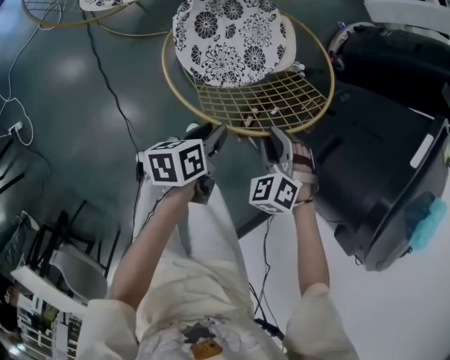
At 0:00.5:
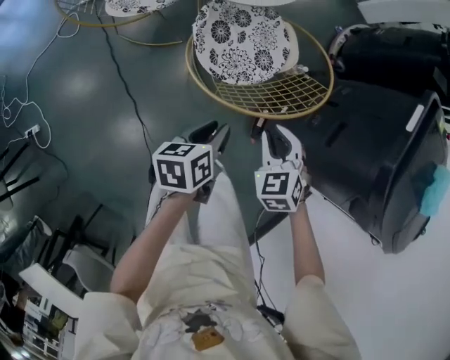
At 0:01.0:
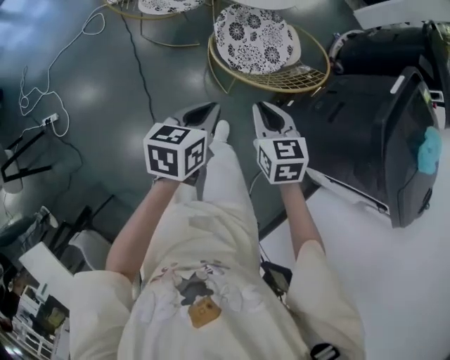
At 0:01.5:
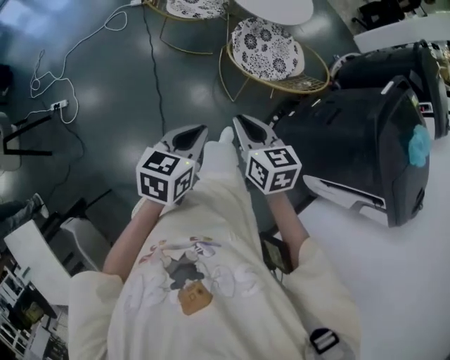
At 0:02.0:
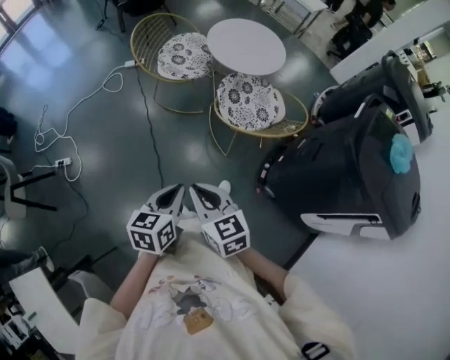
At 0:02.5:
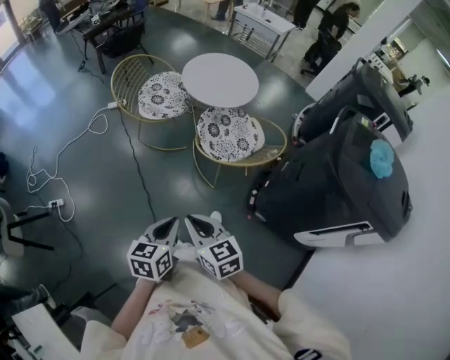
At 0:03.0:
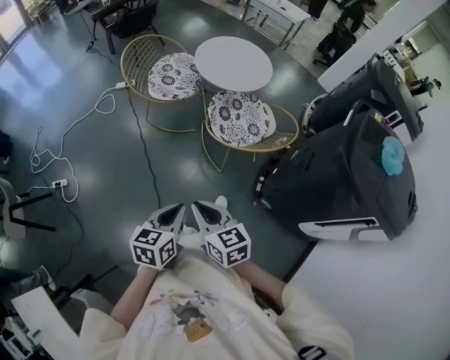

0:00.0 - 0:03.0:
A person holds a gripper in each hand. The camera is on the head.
0:00.0 - 0:01.5: The left gripper changes place by some 40 cm, swivels some 40 degrees, and closes up. The right gripper shifts by about 40 cm, and twists about 60 degrees clockwise, seen from behind.
0:01.5 - 0:03.0: The right gripper goes approximately 10 cm to the left and backward.

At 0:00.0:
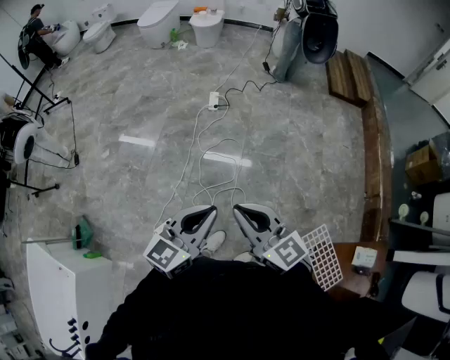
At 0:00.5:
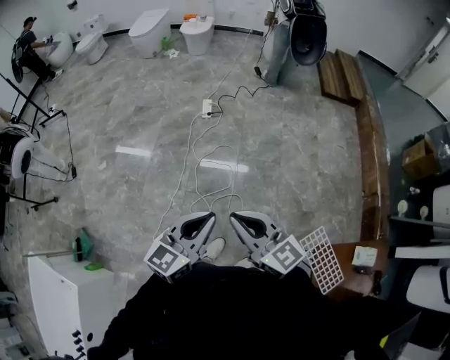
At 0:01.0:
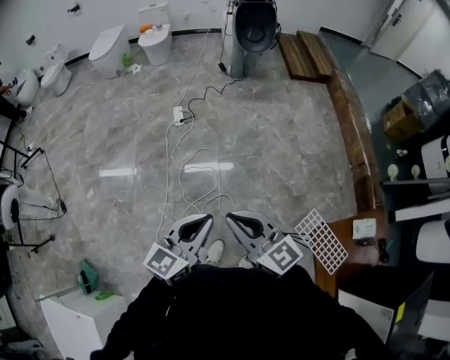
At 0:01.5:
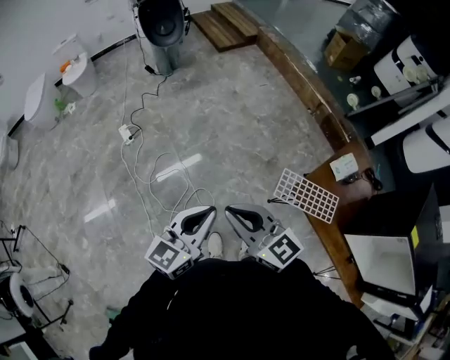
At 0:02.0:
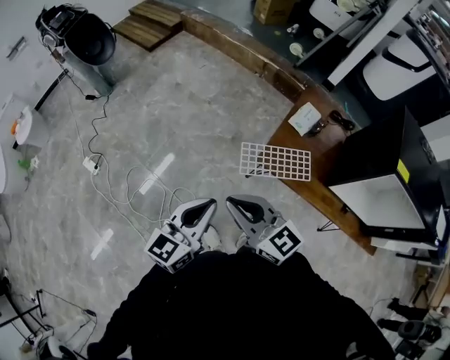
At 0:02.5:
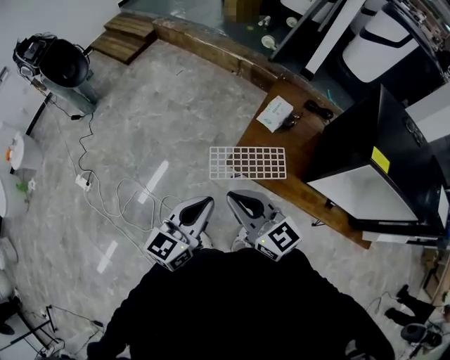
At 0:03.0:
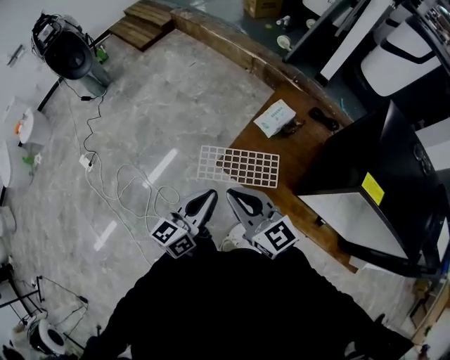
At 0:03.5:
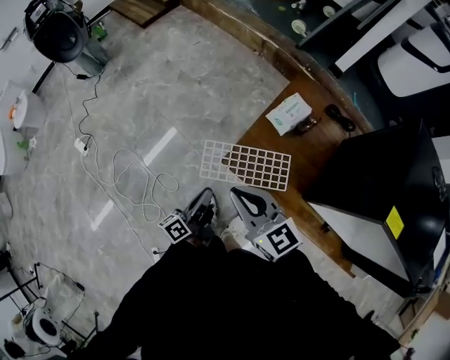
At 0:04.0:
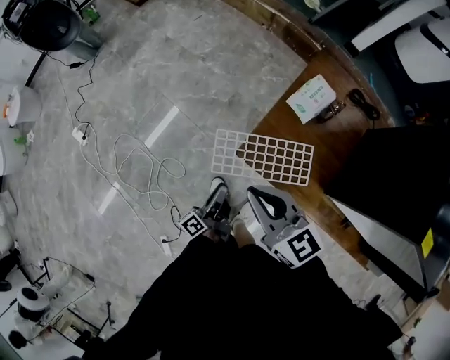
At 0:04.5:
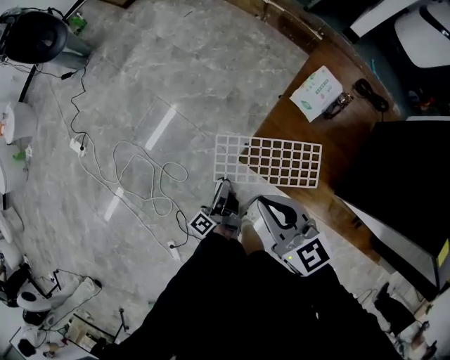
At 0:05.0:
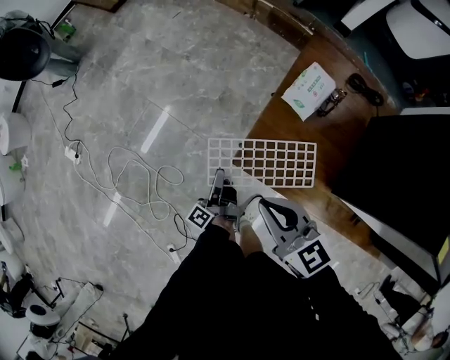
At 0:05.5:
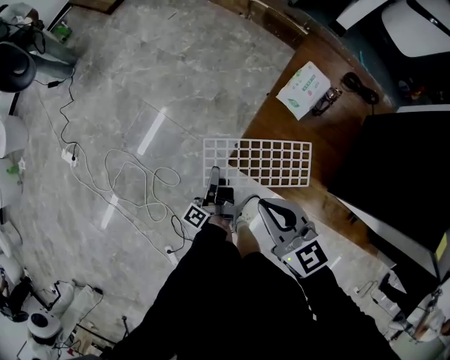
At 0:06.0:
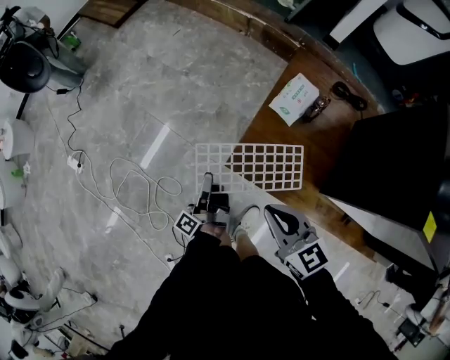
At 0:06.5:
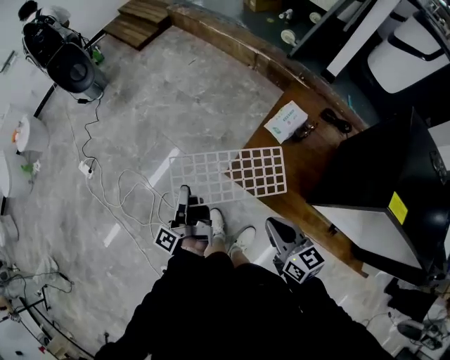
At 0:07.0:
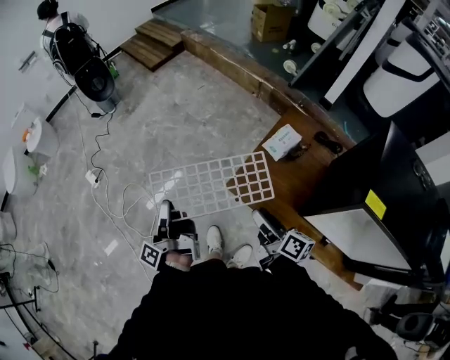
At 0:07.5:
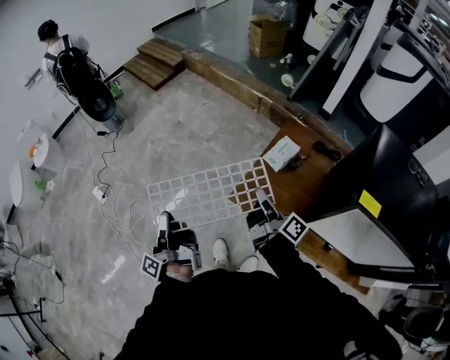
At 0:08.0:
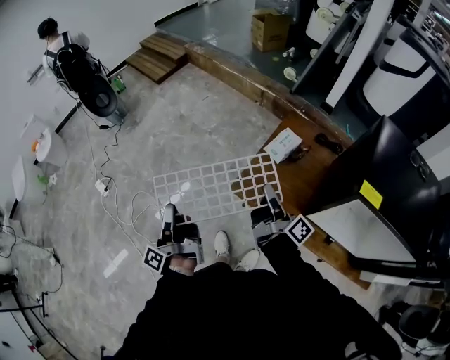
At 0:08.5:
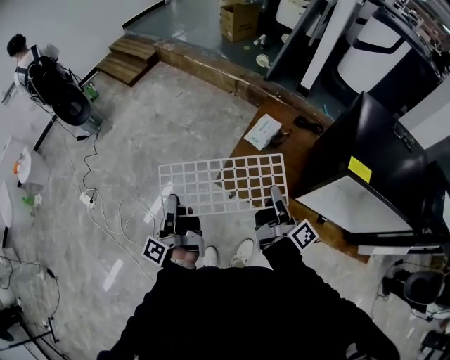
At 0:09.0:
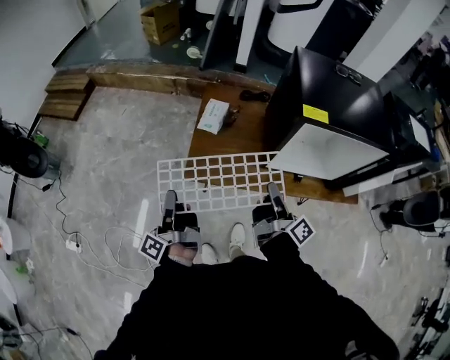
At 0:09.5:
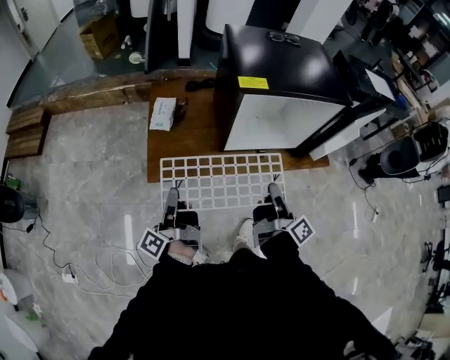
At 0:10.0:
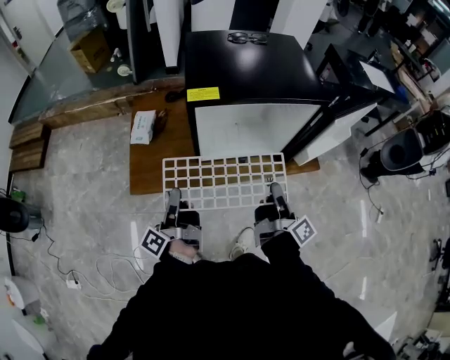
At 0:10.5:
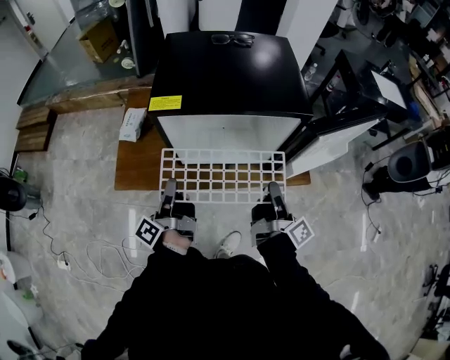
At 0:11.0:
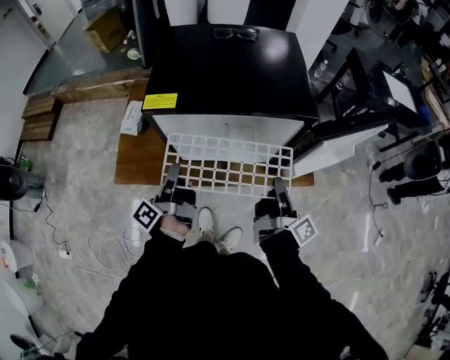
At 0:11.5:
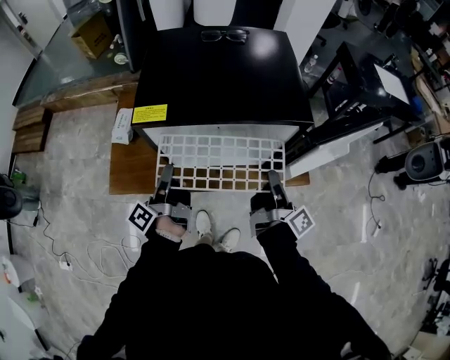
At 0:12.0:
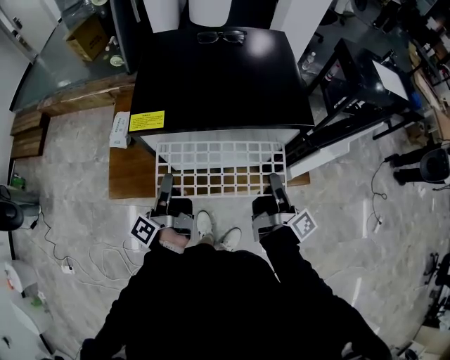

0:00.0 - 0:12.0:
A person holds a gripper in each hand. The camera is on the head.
0:00.0 - 0:02.0: The right gripper changes place by some 25 cm, and rotates approximately 60 degrees.
0:02.0 - 0:04.0: The right gripper moves some 30 cm.
0:04.0 - 0:06.0: The right gripper shifts by roughly 10 cm.
0:06.0 - 0:08.0: The right gripper heads upward, covering some 10 cm, rolls clockwise, seen from behind, by about 70 degrees, and opens, then closes once more.
0:08.0 - 0:10.0: The right gripper ends up approximately 50 cm from where it was, and turns by some 60 degrees.
0:10.0 - 0:12.0: The right gripper shifts by some 20 cm.

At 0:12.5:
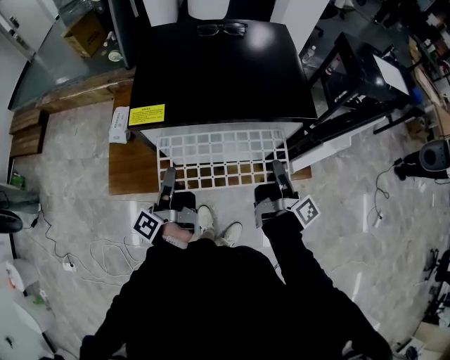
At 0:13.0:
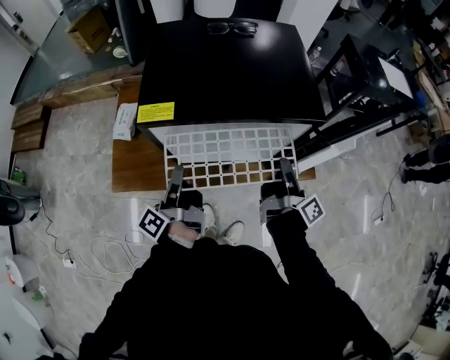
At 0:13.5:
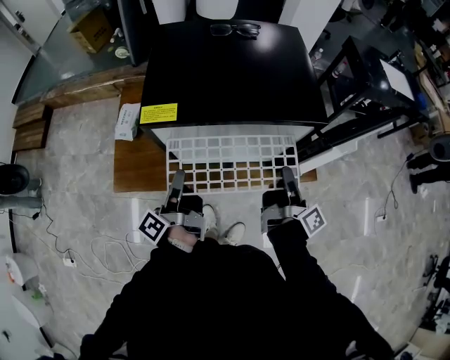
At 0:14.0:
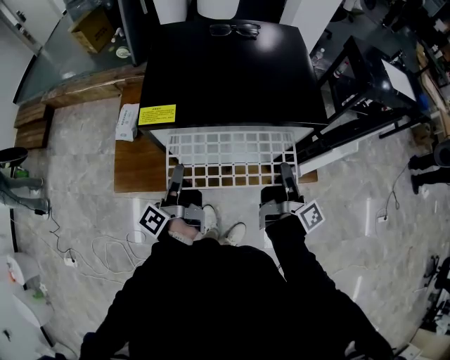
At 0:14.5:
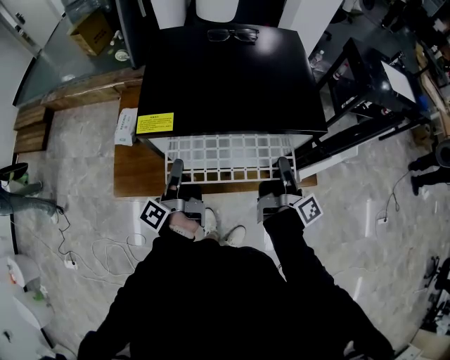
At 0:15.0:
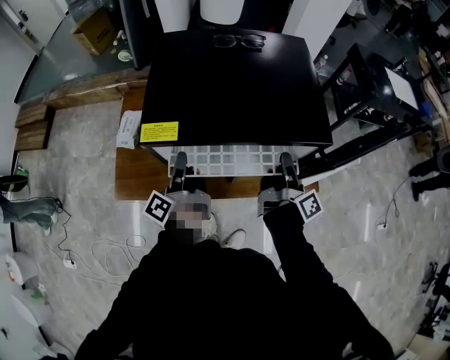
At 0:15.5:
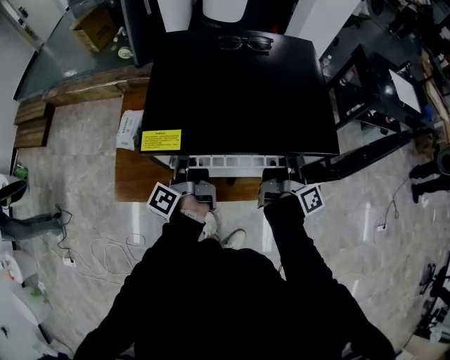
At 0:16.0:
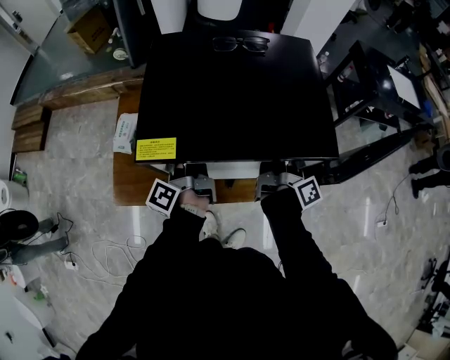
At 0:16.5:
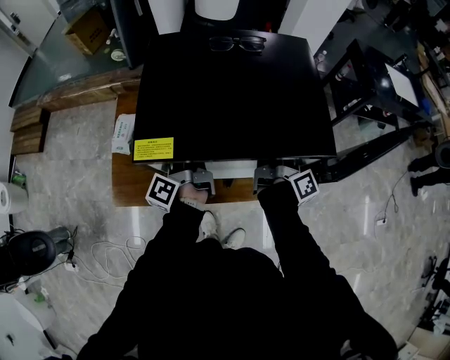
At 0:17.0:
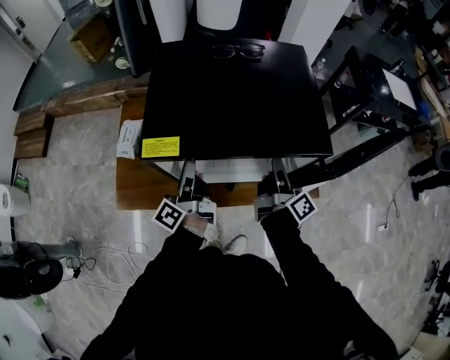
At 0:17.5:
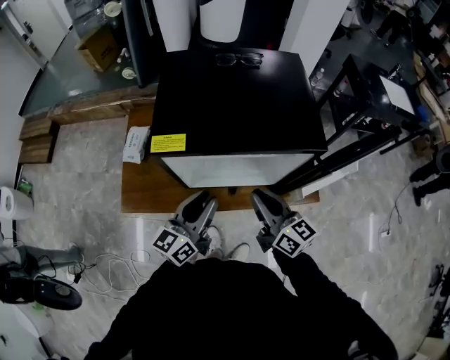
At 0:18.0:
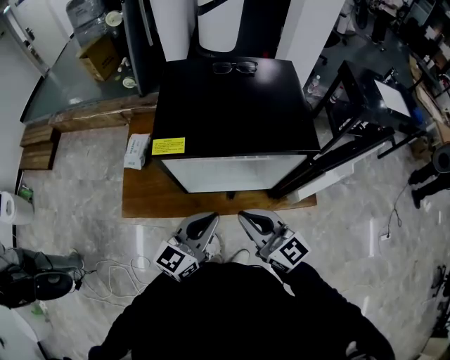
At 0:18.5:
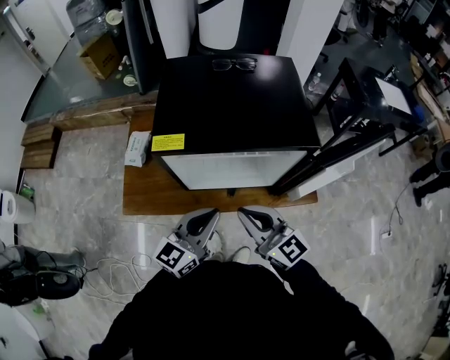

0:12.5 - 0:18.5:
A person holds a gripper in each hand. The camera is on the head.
0:14.5 - 0:16.5: The right gripper ends up about 15 cm from where it was.
0:16.5 - 0:18.5: The right gripper ends up about 30 cm from where it was, changes its angle by approximately 90 degrees, and opens, then closes again.

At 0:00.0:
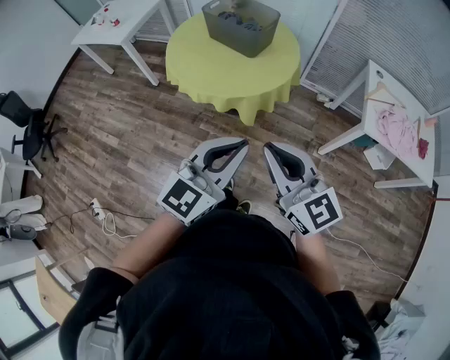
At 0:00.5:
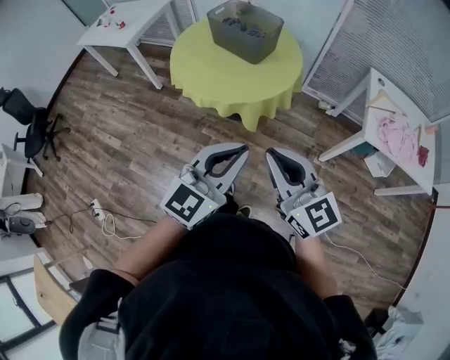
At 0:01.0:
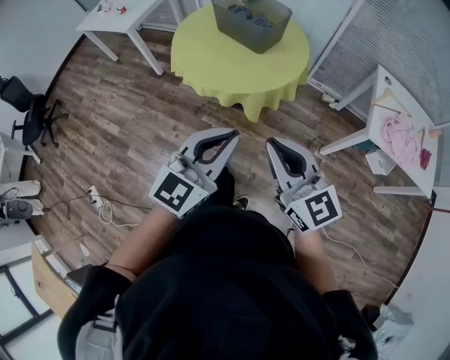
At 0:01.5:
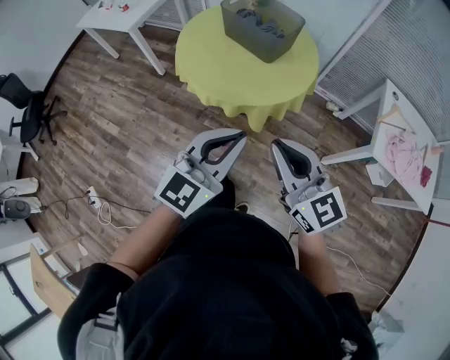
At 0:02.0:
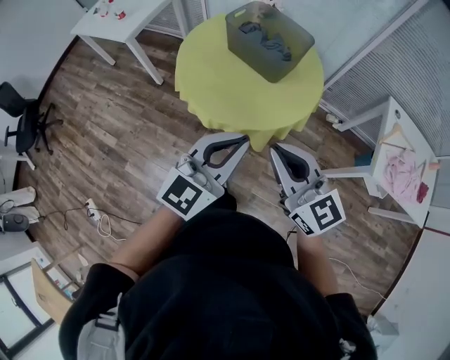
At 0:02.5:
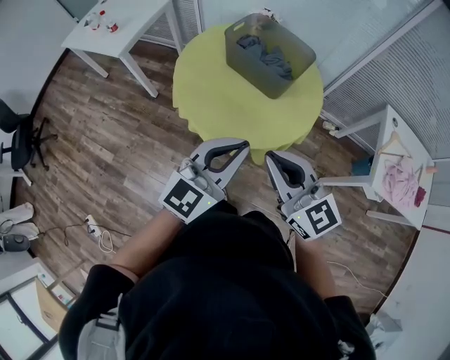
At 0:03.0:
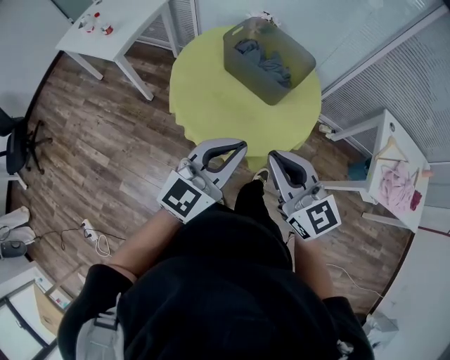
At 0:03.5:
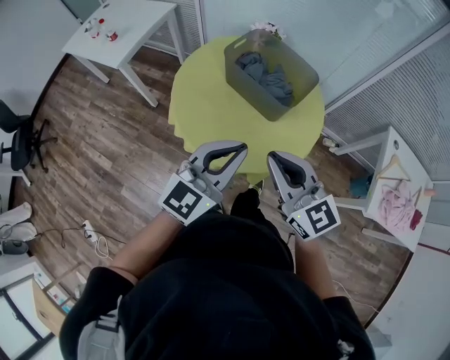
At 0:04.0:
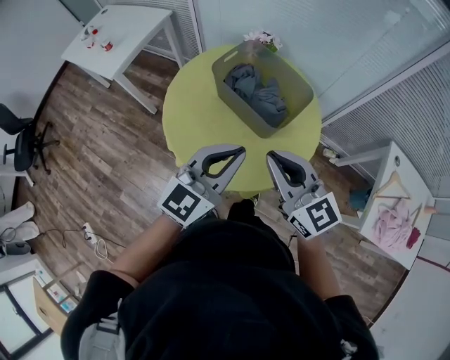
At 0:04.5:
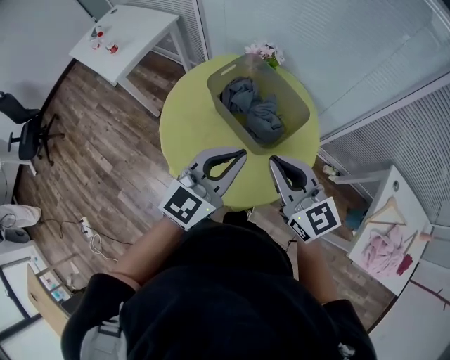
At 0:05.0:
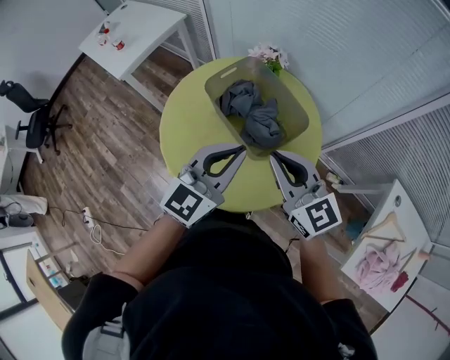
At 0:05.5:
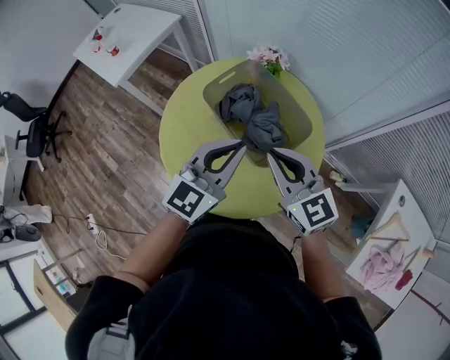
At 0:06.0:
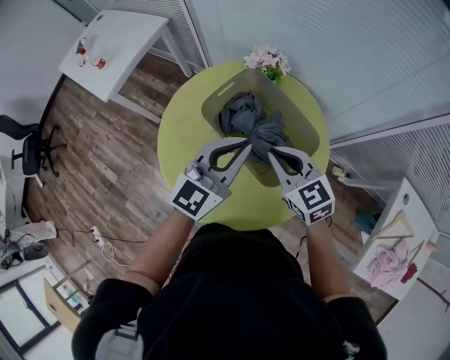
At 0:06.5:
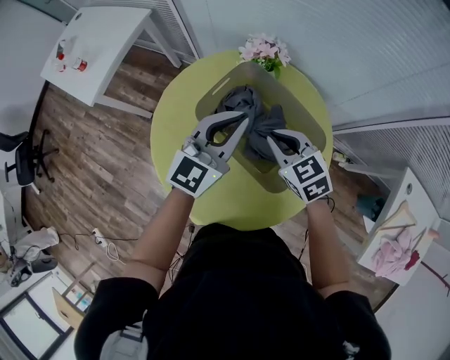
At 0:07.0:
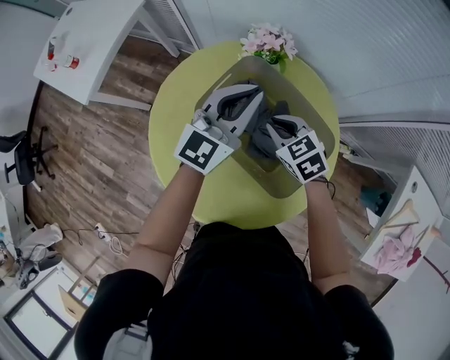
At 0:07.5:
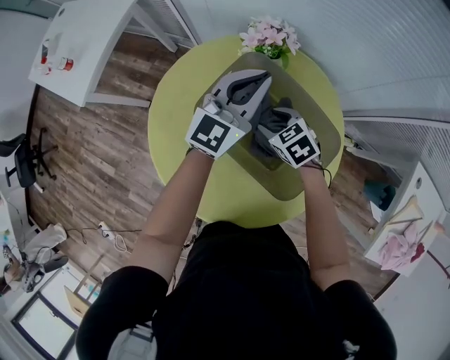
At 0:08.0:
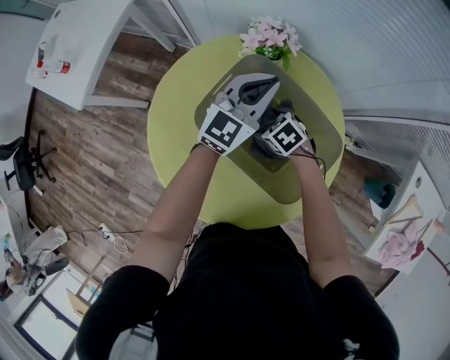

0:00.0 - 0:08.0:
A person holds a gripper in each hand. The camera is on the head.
0:00.0 - 0:02.0: The grippers both shift forward and to the left by about 20 cm.
0:02.0 - 0:04.0: Both grippers travel together forward, some 25 cm.
0:04.0 - 0:06.0: The left gripper shifts about 20 cm forward, while the right gripper travels forward and downward by approximately 25 cm, and changes its angle by about 20 degrees.
0:06.0 - 0:08.0: The right gripper goes approximately 30 cm downward and forward, tilts its fingers roughly 40 degrees downward, and opens its fingers. Meanwhile the left gripper heads forward and downward, covering about 25 cm.
